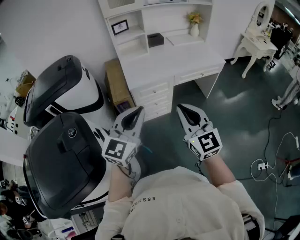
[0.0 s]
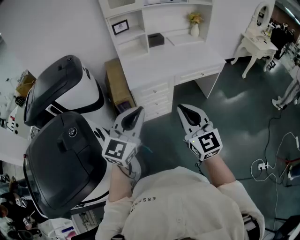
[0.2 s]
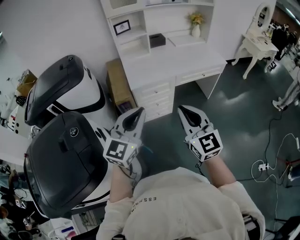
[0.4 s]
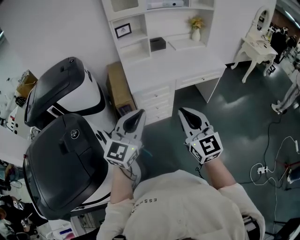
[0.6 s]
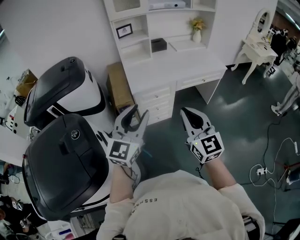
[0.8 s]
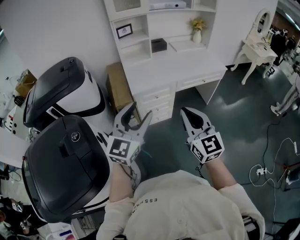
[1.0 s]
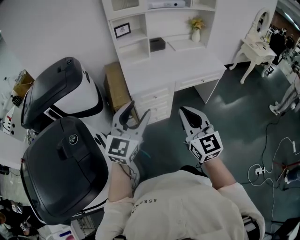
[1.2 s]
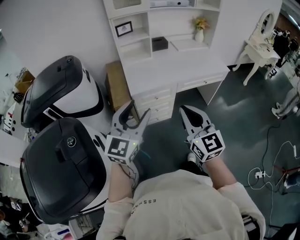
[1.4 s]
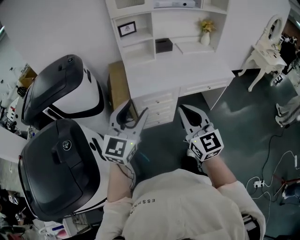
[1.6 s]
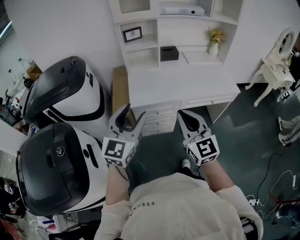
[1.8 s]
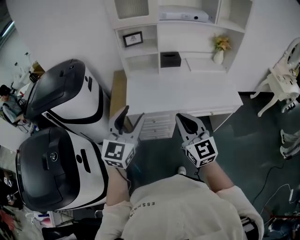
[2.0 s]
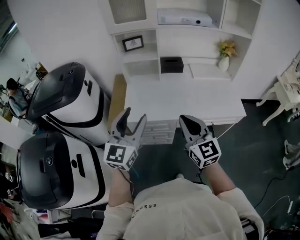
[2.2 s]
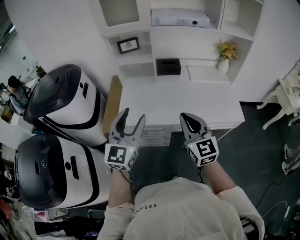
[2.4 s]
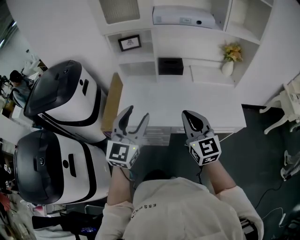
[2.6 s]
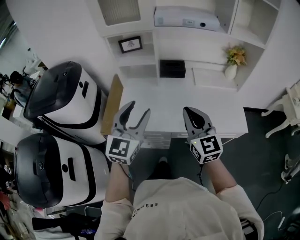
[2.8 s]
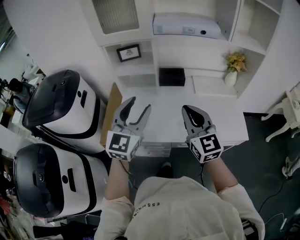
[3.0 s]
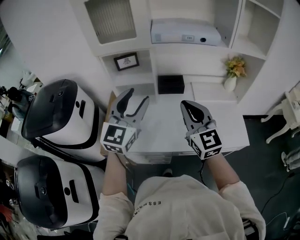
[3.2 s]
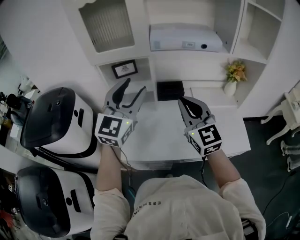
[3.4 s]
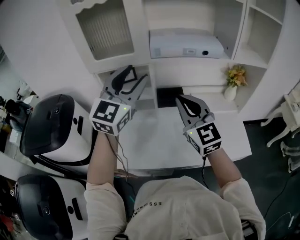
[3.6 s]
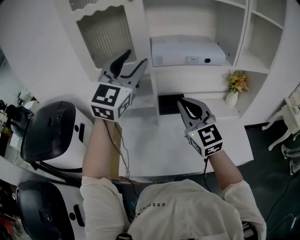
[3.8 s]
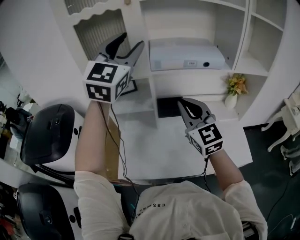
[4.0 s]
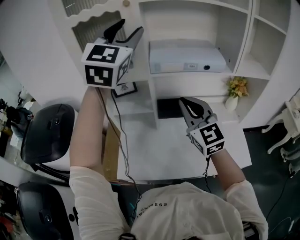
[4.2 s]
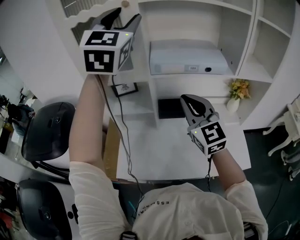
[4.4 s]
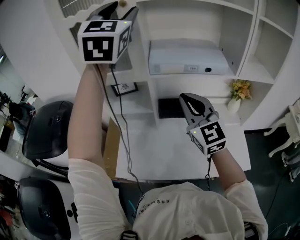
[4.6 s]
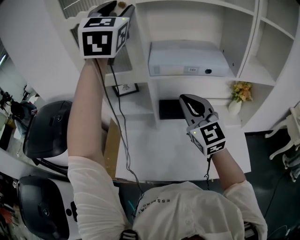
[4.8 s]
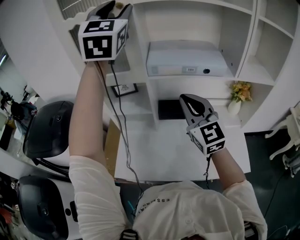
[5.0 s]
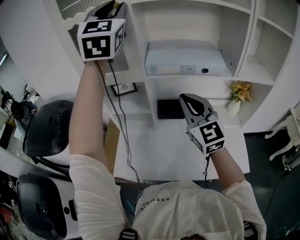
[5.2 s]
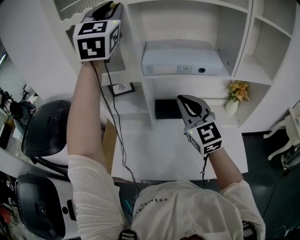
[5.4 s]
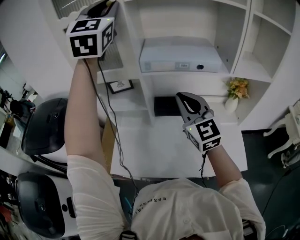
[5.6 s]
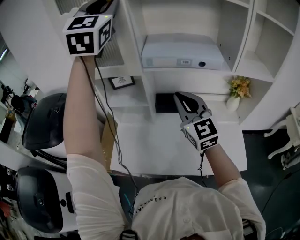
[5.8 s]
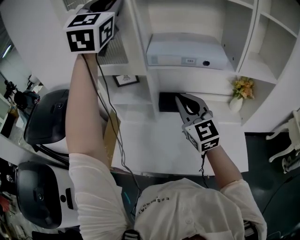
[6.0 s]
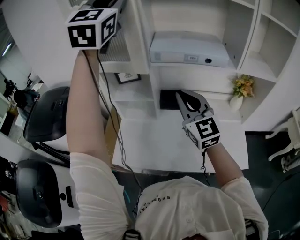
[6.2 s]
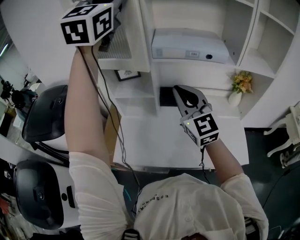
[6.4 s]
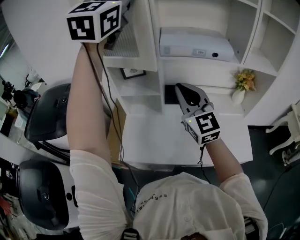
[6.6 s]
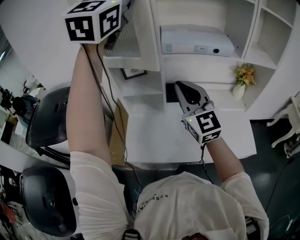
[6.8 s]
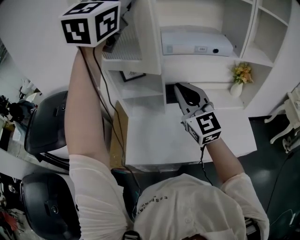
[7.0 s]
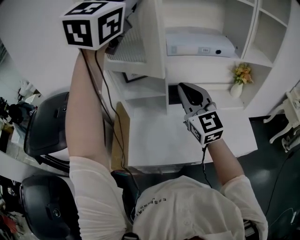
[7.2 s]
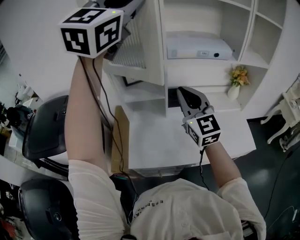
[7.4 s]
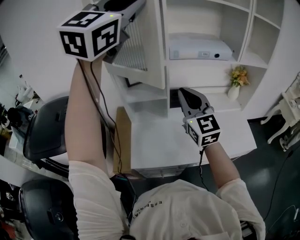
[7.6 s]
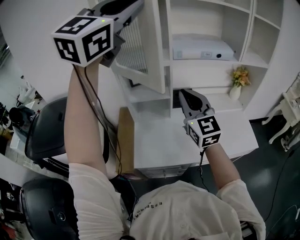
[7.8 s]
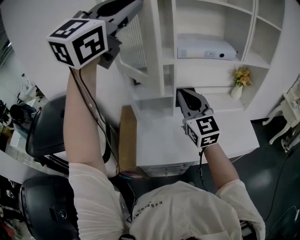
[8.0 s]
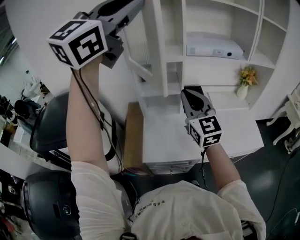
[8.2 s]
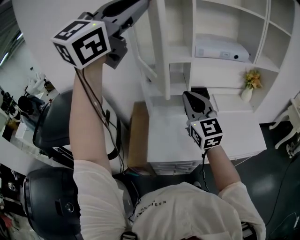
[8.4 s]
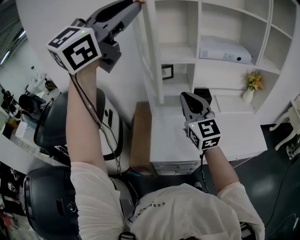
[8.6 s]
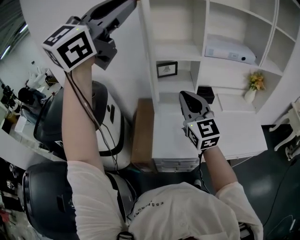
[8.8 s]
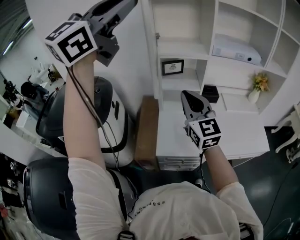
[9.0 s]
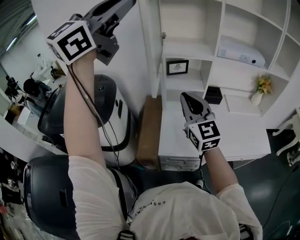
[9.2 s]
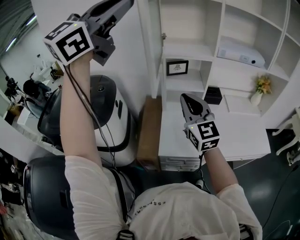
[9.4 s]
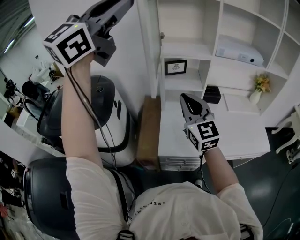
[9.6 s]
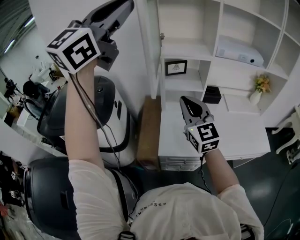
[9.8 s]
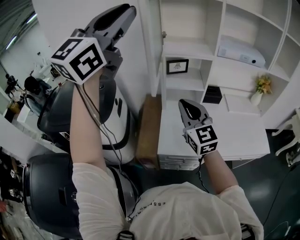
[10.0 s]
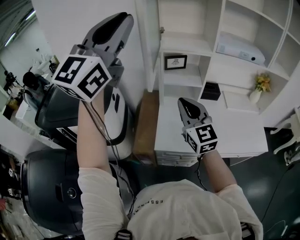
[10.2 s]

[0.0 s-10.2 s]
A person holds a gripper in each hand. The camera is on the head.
0.0 to 1.4 s: Both grippers travel together forward, about 5 cm. The left gripper opens up.
1.4 to 3.0 s: The pair of grippers is taken forward and to the right, some 50 cm. The left gripper changes its angle by some 20 degrees.
3.0 to 4.4 s: The left gripper moves upward and forward, roughly 50 cm, and swivels approximately 20 degrees. The right gripper shifts about 25 cm forward and upward.
4.4 to 5.8 s: The left gripper closes its fingers.
5.8 to 7.2 s: The left gripper shifts approximately 10 cm backward, and changes its angle by approximately 20 degrees. The right gripper moves to the left and backward, some 10 cm.
7.2 to 8.8 s: The two grippers go approximately 20 cm to the left and backward.
8.8 to 10.2 s: The left gripper goes roughly 10 cm downward and to the left, while the right gripper is displaced downward by roughly 5 cm.

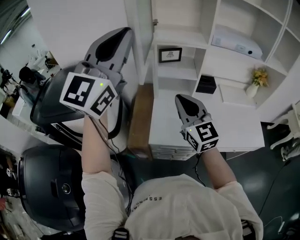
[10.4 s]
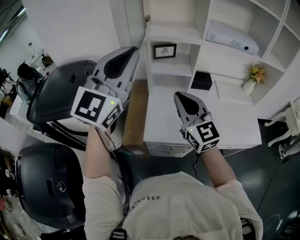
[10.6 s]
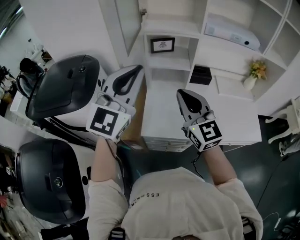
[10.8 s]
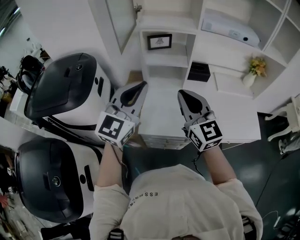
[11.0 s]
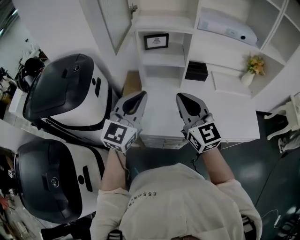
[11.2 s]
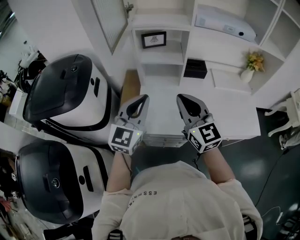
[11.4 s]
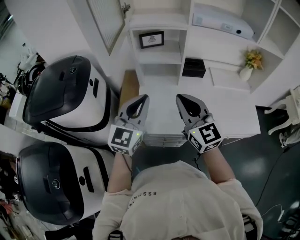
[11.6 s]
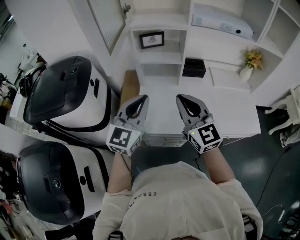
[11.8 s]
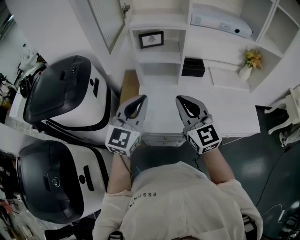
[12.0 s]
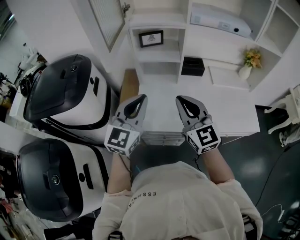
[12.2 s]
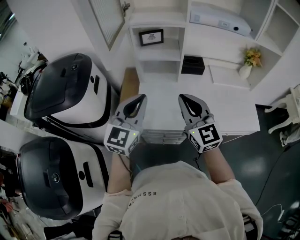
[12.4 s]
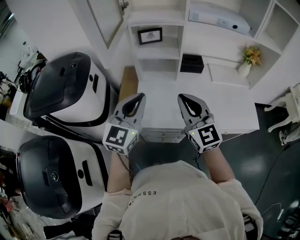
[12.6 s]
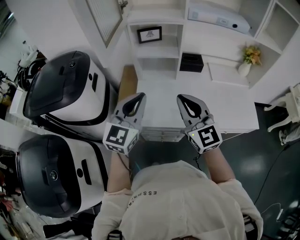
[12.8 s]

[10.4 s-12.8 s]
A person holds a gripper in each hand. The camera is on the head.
10.4 to 11.6 s: The left gripper heads downward and to the right, covering about 30 cm, and swivels roughly 30 degrees; the right gripper shifts approximately 10 cm to the right.
11.6 to 12.8 s: The grippers stay close to where they were, moving slightly.

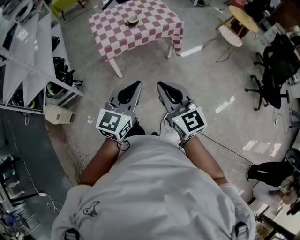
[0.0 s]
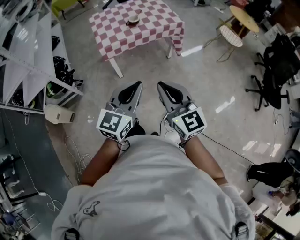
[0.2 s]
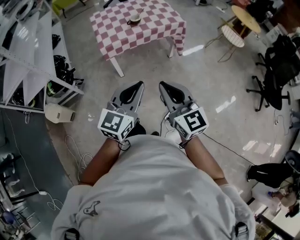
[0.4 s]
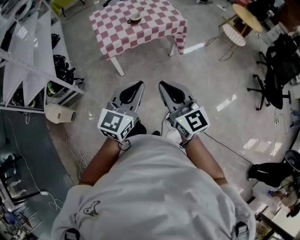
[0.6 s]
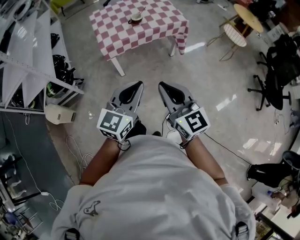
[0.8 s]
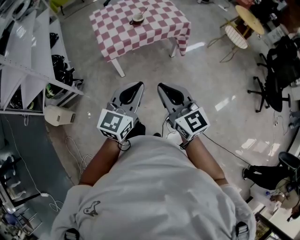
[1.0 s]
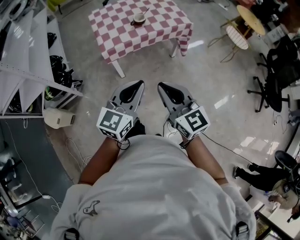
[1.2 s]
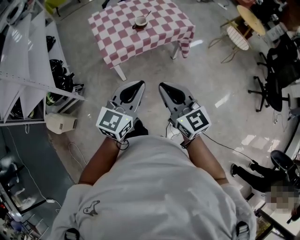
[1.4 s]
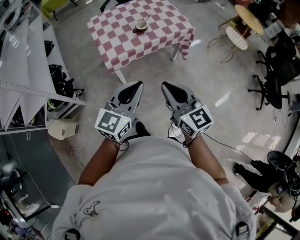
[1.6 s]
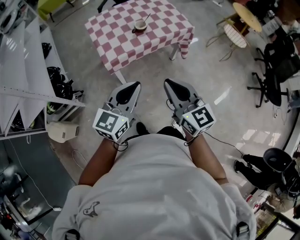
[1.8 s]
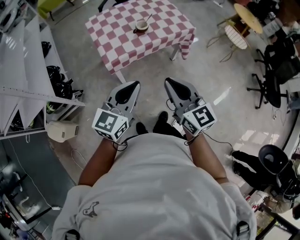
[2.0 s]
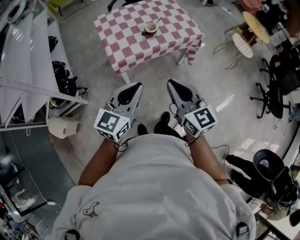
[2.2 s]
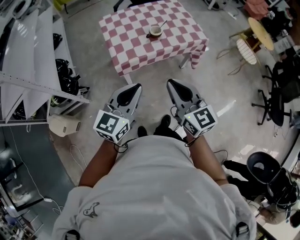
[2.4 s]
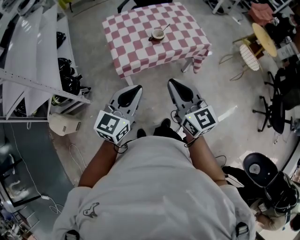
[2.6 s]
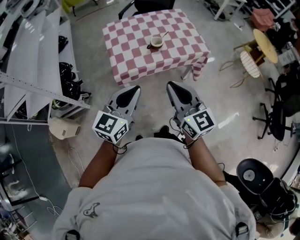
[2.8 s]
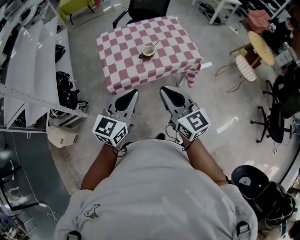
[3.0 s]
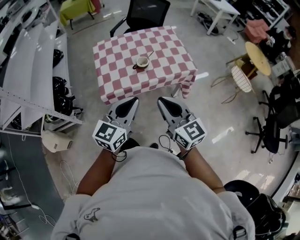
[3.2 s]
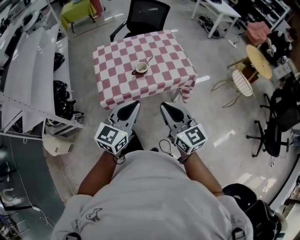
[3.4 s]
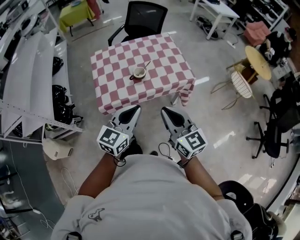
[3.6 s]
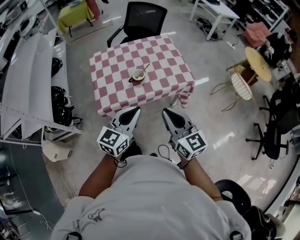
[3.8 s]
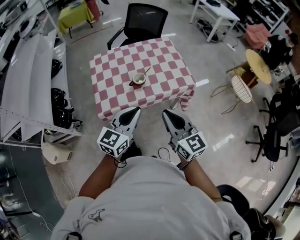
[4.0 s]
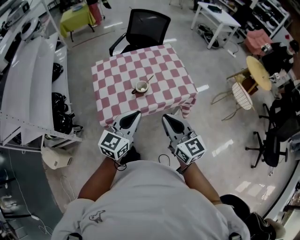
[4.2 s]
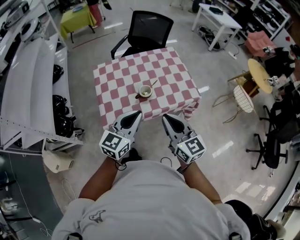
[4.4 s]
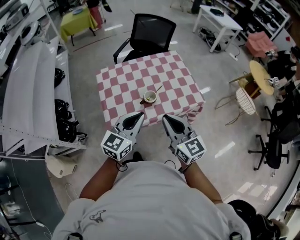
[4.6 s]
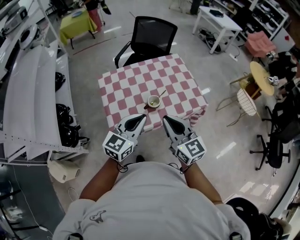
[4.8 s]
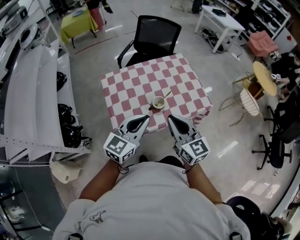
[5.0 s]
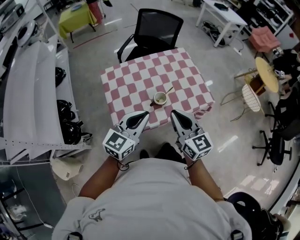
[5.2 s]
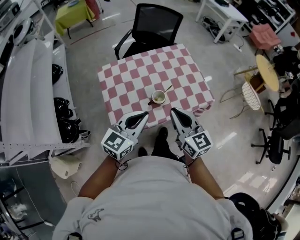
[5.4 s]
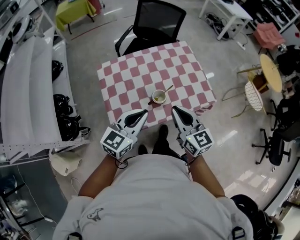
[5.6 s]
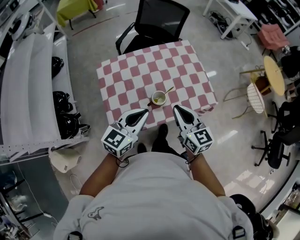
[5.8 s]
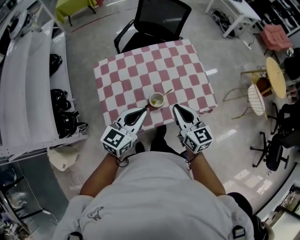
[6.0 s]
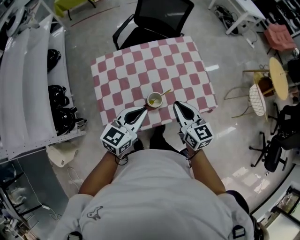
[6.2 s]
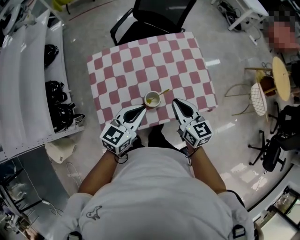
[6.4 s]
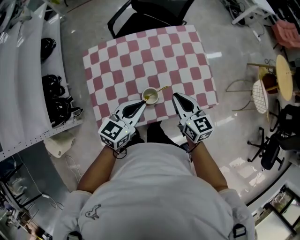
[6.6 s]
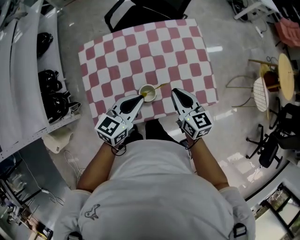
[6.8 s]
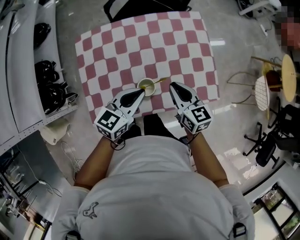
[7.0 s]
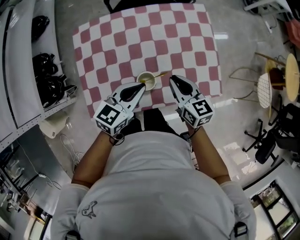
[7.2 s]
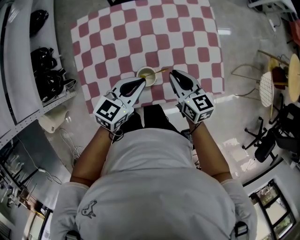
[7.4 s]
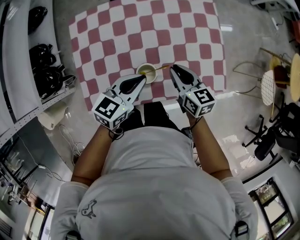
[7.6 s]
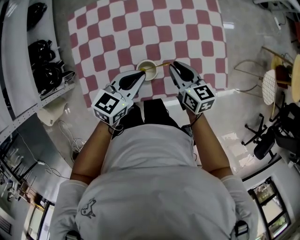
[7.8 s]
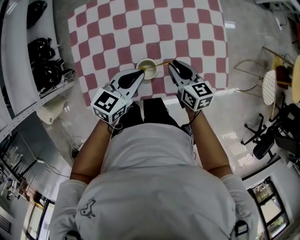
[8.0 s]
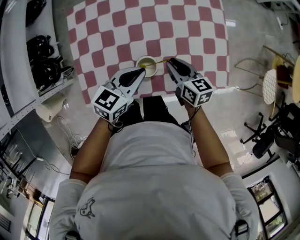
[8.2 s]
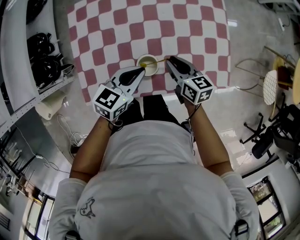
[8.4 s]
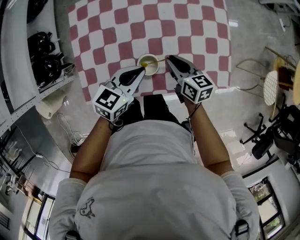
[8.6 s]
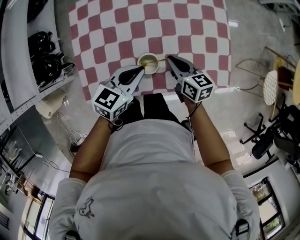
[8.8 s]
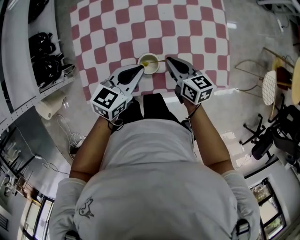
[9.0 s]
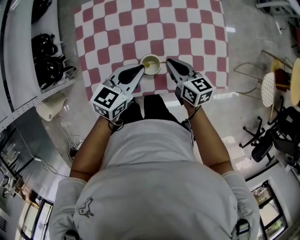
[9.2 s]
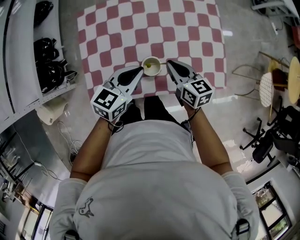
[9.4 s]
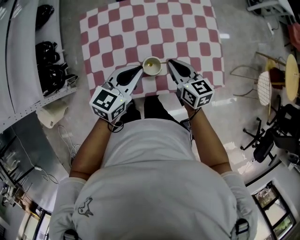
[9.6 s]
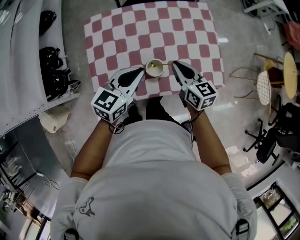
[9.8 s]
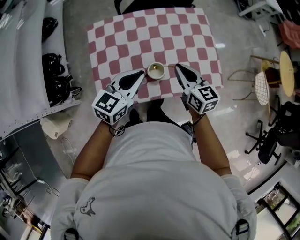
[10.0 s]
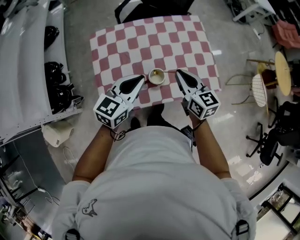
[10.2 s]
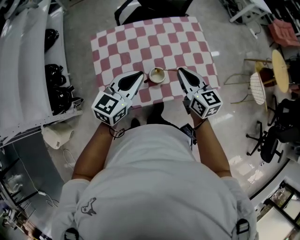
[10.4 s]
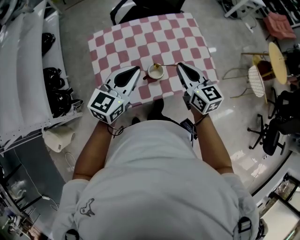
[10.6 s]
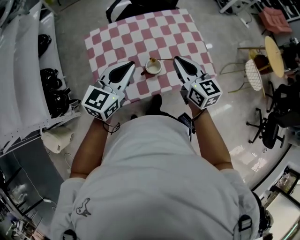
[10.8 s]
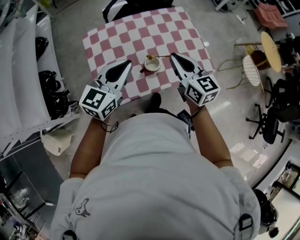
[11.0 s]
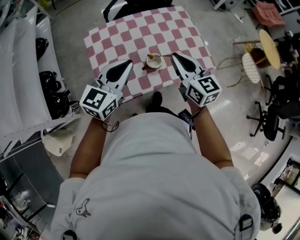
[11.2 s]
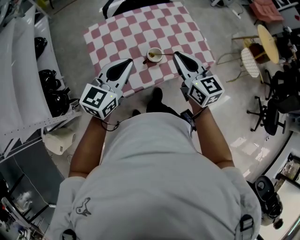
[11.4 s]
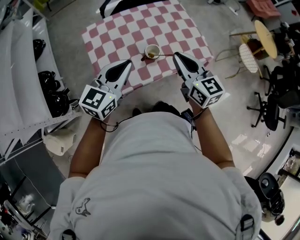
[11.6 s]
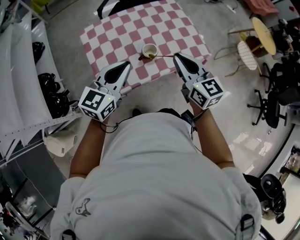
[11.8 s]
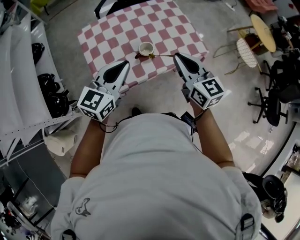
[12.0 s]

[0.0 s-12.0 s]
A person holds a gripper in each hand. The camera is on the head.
0.0 to 1.6 s: Both grippers move forward and to the left, roughly 20 cm.
1.6 to 3.0 s: Both grippers travel together forward, roughly 15 cm.
3.0 to 4.4 s: The two grippers go roughly 15 cm forward.
4.4 to 6.0 s: Both grippers move forward, approximately 20 cm.
6.0 to 7.6 s: Both grippers move downward and forward, roughly 20 cm. The right gripper changes its angle by approximately 20 degrees.
7.6 to 9.0 s: There are only small adjustments of the grippers.
9.0 to 10.4 s: The left gripper shifts about 20 cm upward and to the left, and rotates some 20 degrees, while the right gripper heads upward, covering roughly 20 cm, and swivels approximately 30 degrees.
10.4 to 12.0 s: The left gripper heads backward, covering about 15 cm, while the right gripper travels backward and upward by roughly 15 cm.
